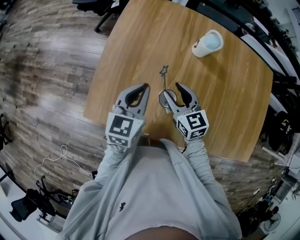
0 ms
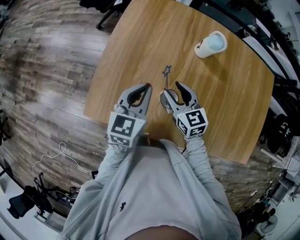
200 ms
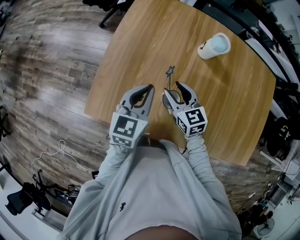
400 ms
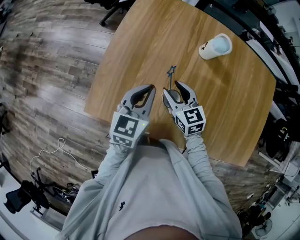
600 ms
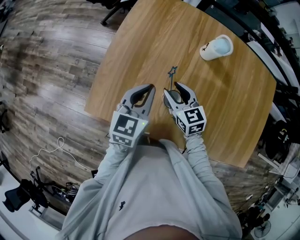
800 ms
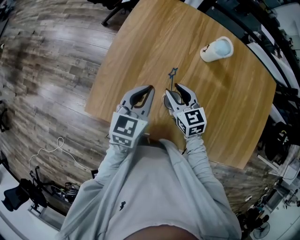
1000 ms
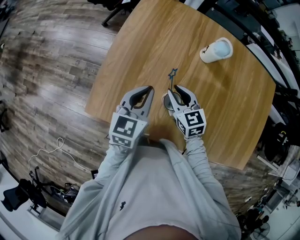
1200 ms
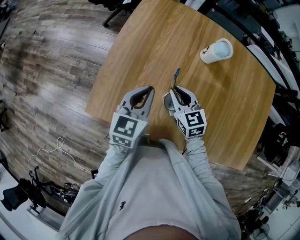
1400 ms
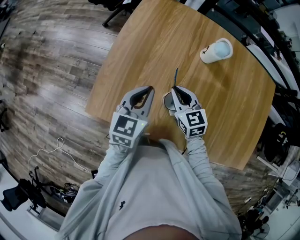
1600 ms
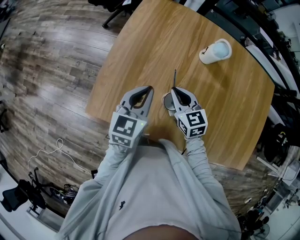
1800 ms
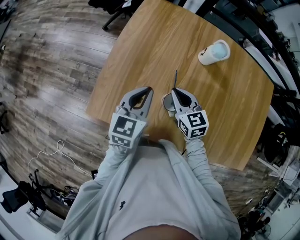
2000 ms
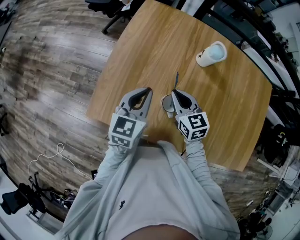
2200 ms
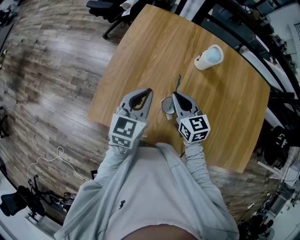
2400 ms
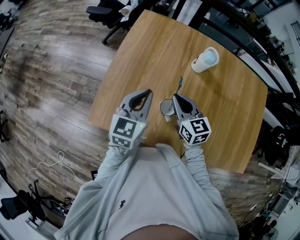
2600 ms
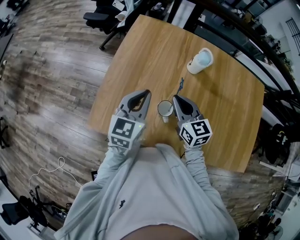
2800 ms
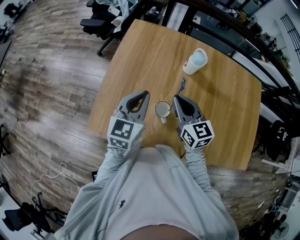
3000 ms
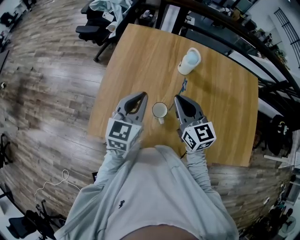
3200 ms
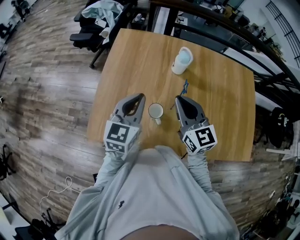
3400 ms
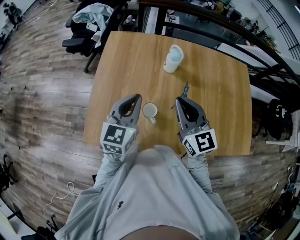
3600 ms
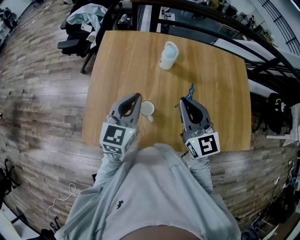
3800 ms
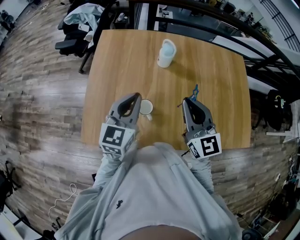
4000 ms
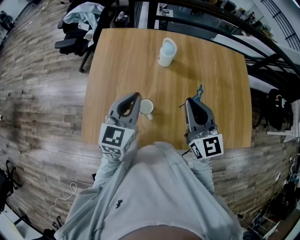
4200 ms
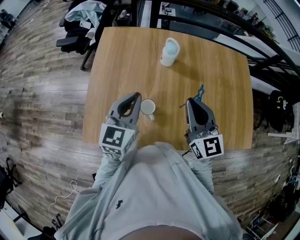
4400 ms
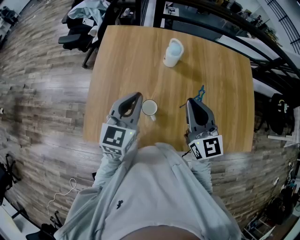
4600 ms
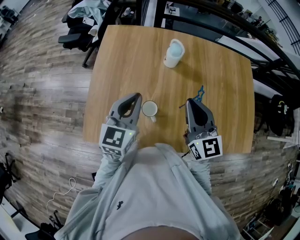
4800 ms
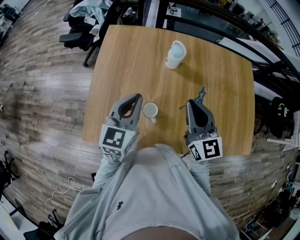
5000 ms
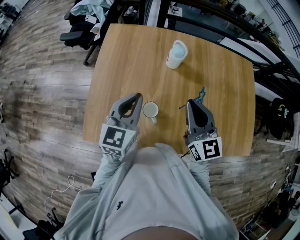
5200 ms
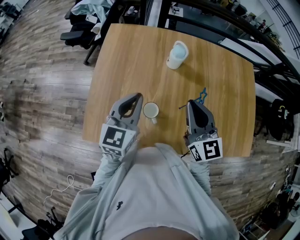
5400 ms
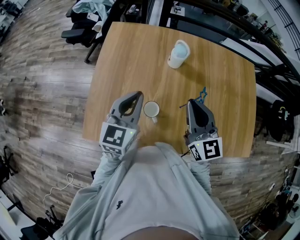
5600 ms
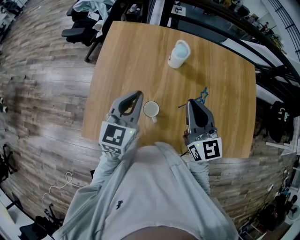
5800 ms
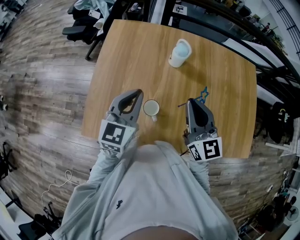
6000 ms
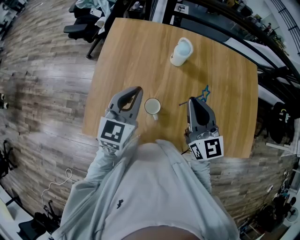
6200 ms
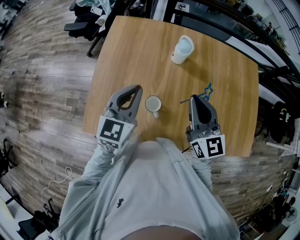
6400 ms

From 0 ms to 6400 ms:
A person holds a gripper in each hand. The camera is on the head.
From 0 ms to 1600 ms: The right gripper closes its fingers.
From 1600 ms to 3200 ms: The left gripper heads upward, covering about 10 cm. The right gripper travels upward by approximately 15 cm, and turns by roughly 20 degrees.
From 3200 ms to 4800 ms: The right gripper goes about 10 cm to the right.
From 4800 ms to 6400 ms: The grippers stay close to where they were, moving slightly.

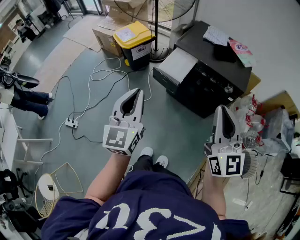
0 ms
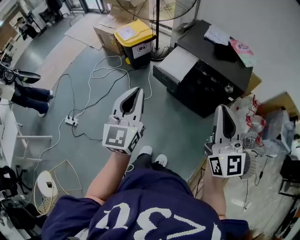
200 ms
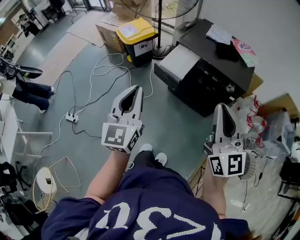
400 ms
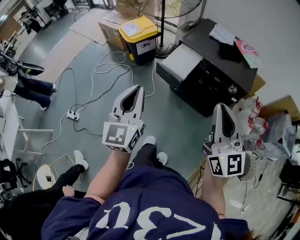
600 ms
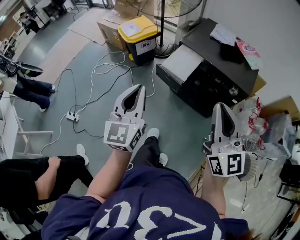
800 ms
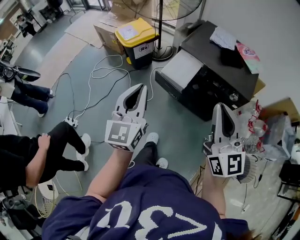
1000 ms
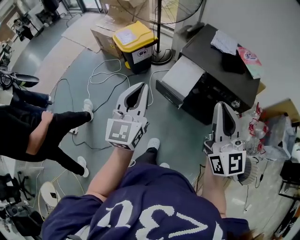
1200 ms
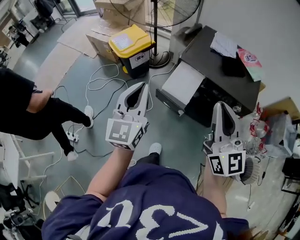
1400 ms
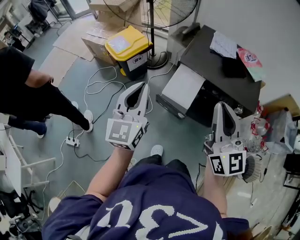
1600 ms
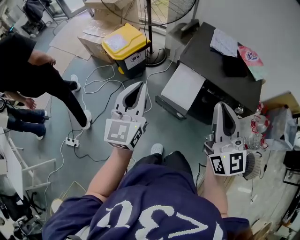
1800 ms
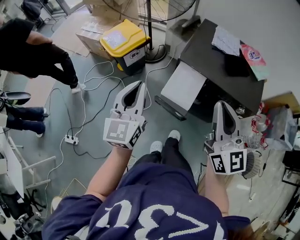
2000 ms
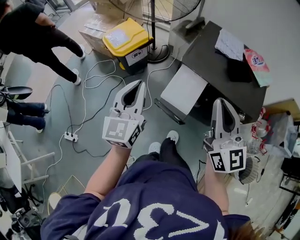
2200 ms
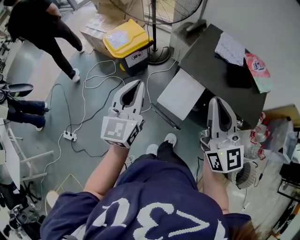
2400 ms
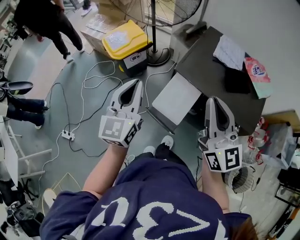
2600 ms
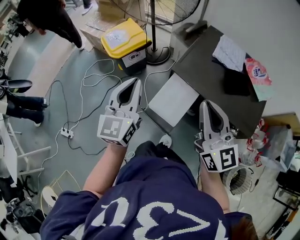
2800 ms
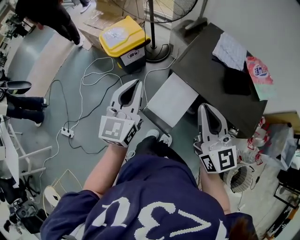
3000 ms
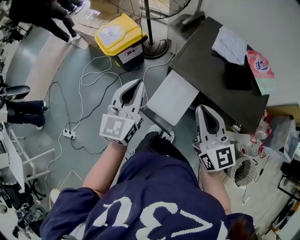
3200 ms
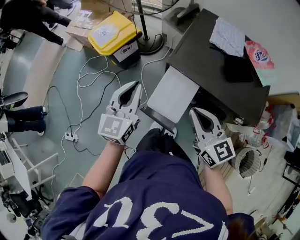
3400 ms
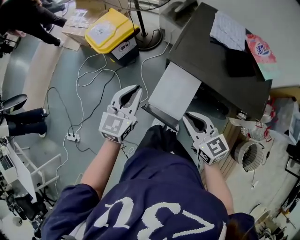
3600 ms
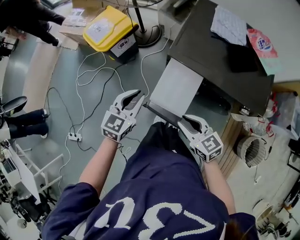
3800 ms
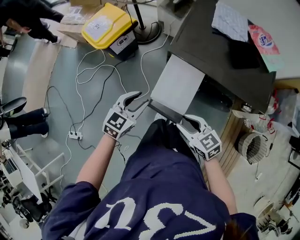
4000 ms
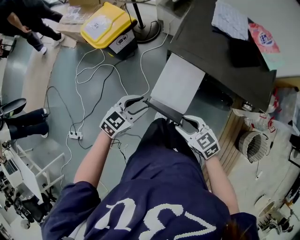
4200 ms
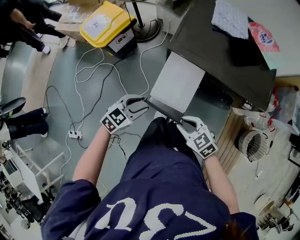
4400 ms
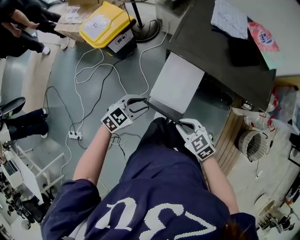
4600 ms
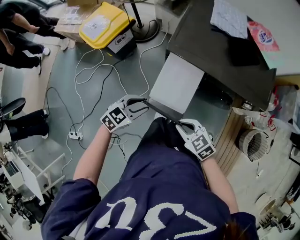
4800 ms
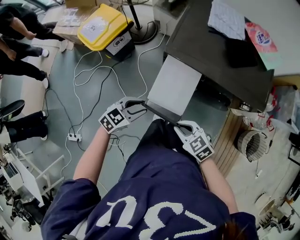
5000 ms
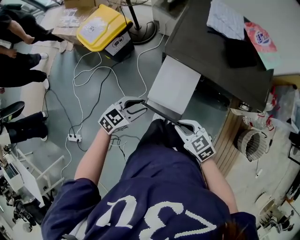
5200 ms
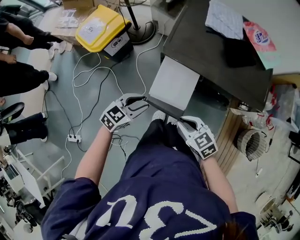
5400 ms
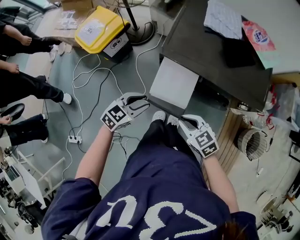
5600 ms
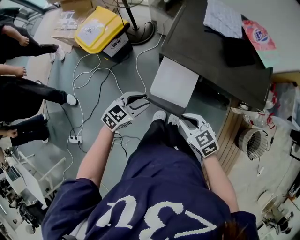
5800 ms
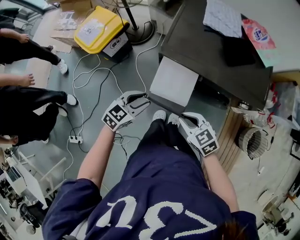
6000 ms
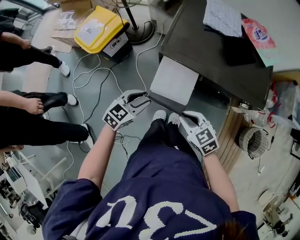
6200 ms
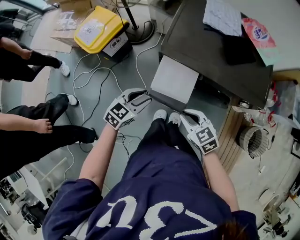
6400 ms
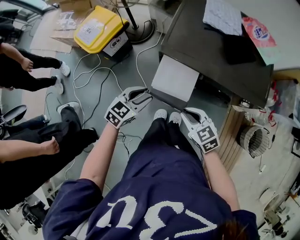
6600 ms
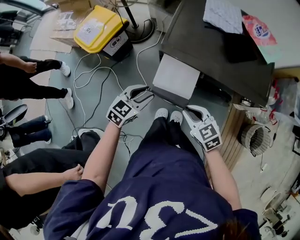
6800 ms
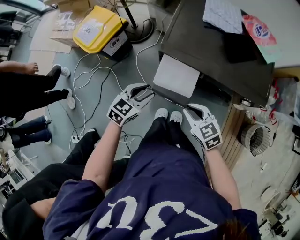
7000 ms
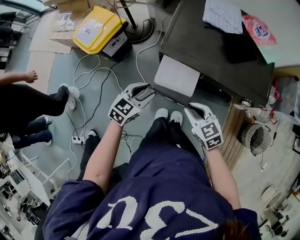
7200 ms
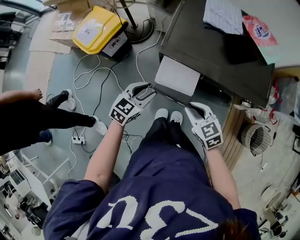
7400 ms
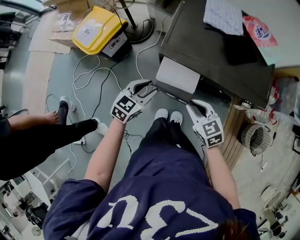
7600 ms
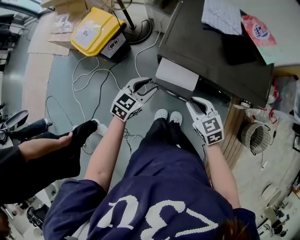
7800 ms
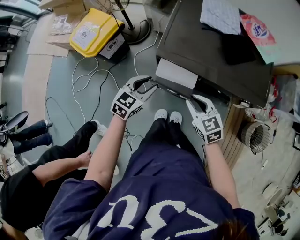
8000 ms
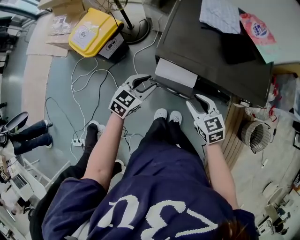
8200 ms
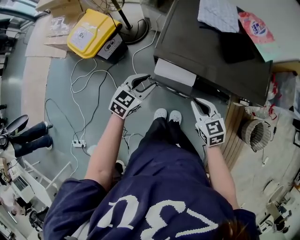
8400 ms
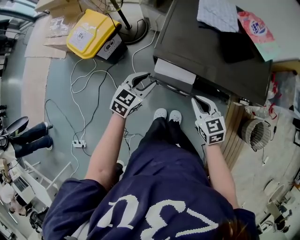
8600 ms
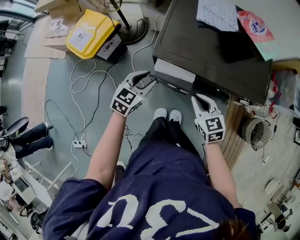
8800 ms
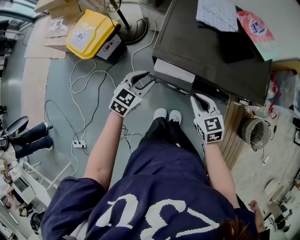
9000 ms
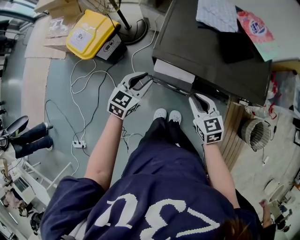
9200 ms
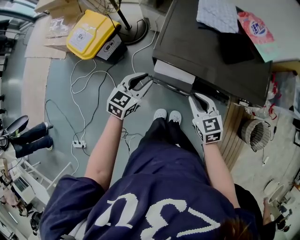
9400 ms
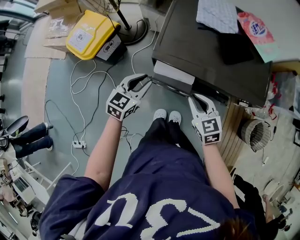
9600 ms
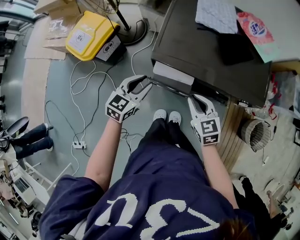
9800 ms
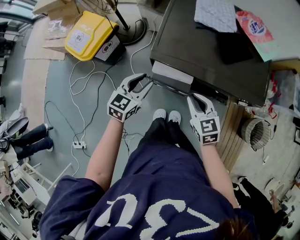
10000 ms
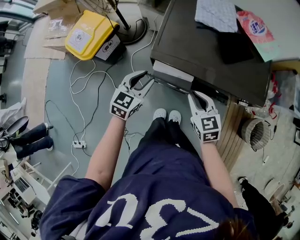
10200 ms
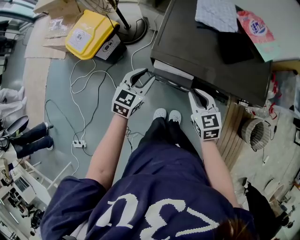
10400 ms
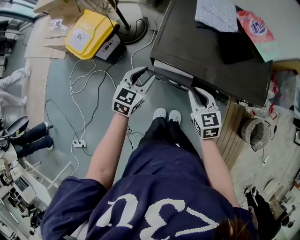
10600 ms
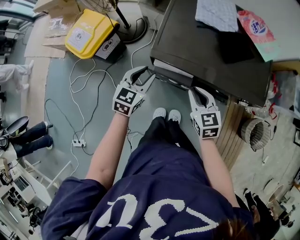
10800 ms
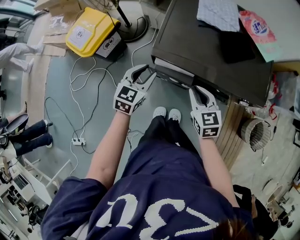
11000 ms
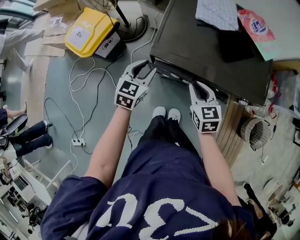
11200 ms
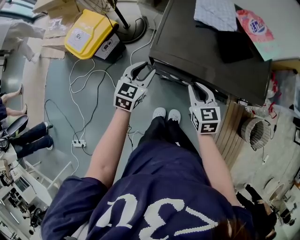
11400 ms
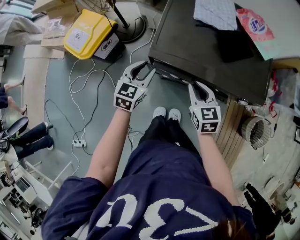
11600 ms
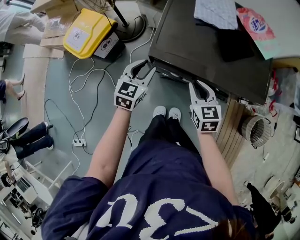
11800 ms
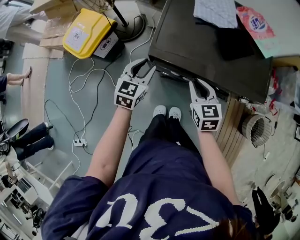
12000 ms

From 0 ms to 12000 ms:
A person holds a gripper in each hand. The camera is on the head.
From 0 ms to 1600 ms: The grippers both shift forward by approximately 25 cm.
From 1600 ms to 3000 ms: The left gripper goes roughly 20 cm forward and to the right. The right gripper shifts approximately 20 cm forward and downward.
From 3000 ms to 4400 ms: Both grippers travel together downward, roughly 25 cm. The left gripper tips its fingers downward by approximately 30 degrees, and opens. Meanwhile the right gripper tilts its fingers some 50 degrees downward, and opens up.
From 4400 ms to 6000 ms: The left gripper changes place by roughly 5 cm. Meanwhile the right gripper ends up approximately 5 cm from where it was.
From 6000 ms to 7600 ms: The grippers both shift forward by some 5 cm.
From 7600 ms to 9000 ms: The right gripper moves some 5 cm, while the left gripper shifts approximately 5 cm forward.
From 9000 ms to 12000 ms: The grippers stay close to where they were, moving slightly.

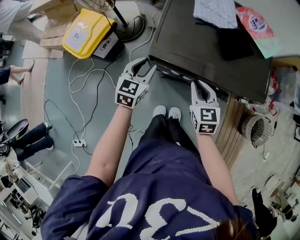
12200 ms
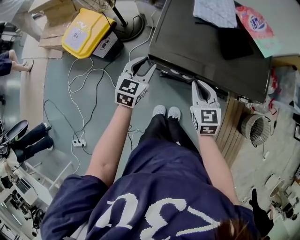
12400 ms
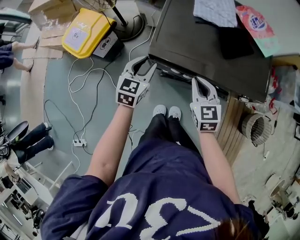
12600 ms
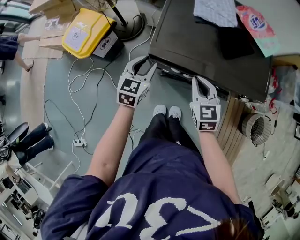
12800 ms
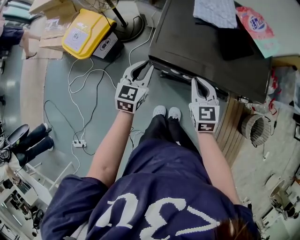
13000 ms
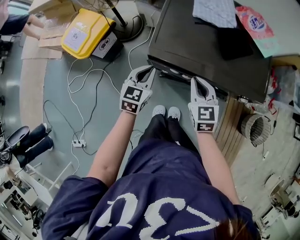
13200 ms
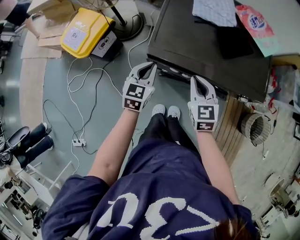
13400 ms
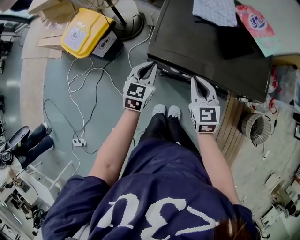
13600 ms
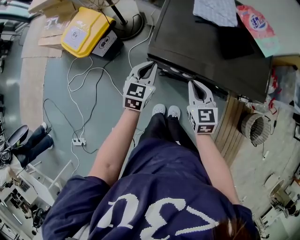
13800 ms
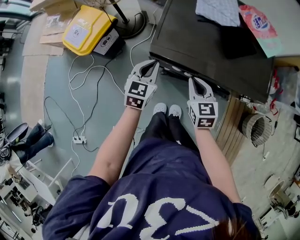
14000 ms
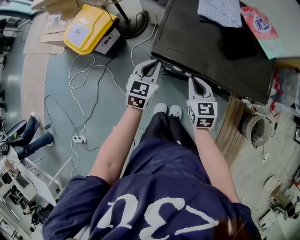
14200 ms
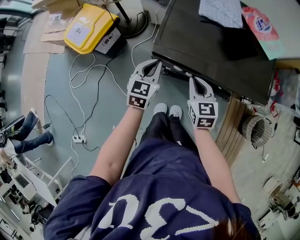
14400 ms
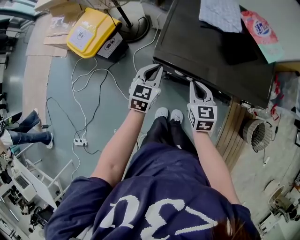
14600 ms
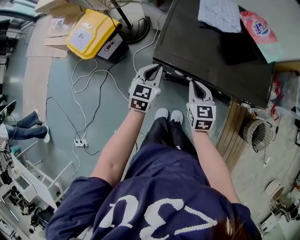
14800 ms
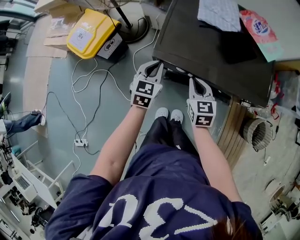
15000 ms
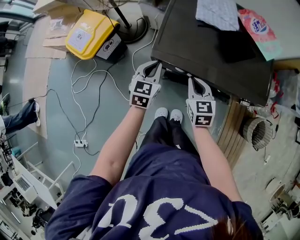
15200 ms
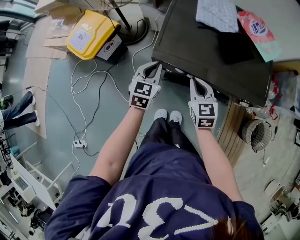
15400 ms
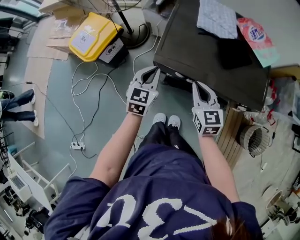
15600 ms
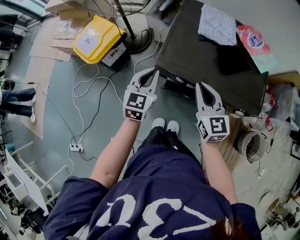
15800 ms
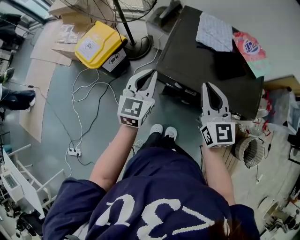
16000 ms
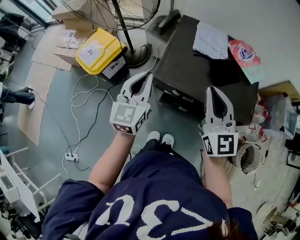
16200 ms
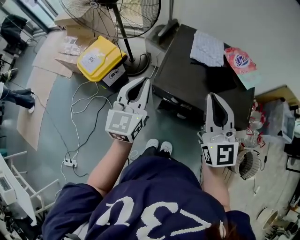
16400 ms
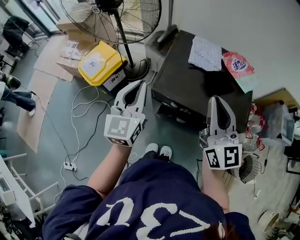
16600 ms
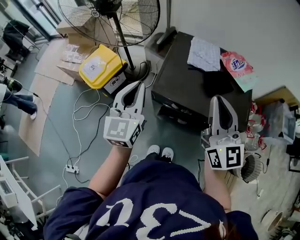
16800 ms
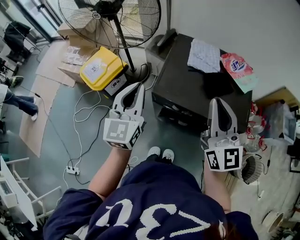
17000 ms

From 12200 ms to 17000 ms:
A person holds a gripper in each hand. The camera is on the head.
From 12200 ms to 13800 ms: The left gripper closes its fingers.
From 13800 ms to 15400 ms: There are only small adjustments of the grippers.
From 15400 ms to 17000 ms: Both grippers move upward, approximately 30 cm. The left gripper changes its angle by some 30 degrees, while the right gripper tips its fingers upward by approximately 40 degrees.

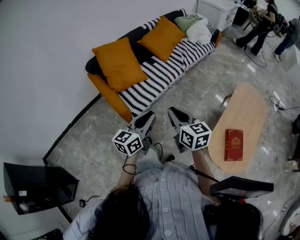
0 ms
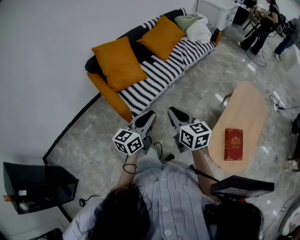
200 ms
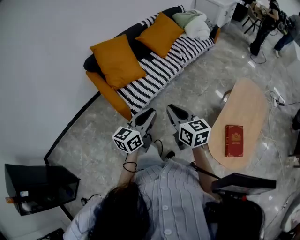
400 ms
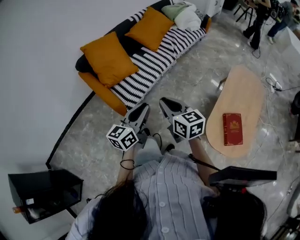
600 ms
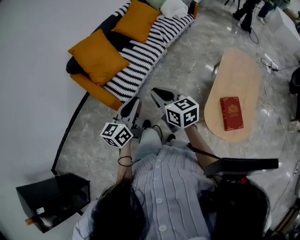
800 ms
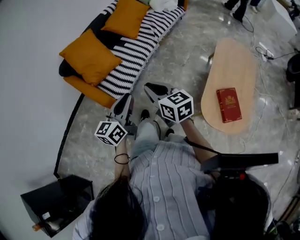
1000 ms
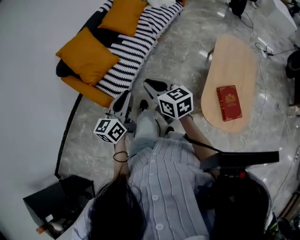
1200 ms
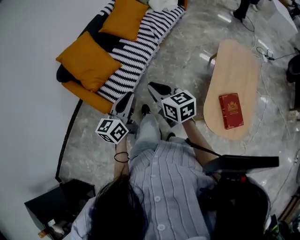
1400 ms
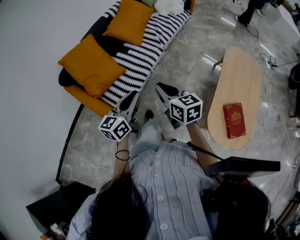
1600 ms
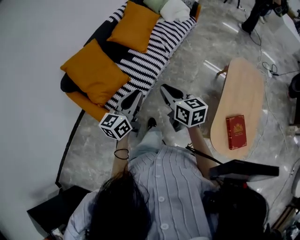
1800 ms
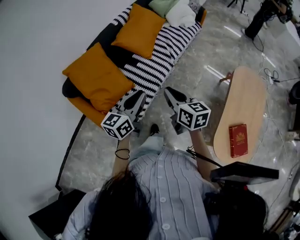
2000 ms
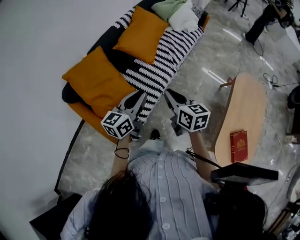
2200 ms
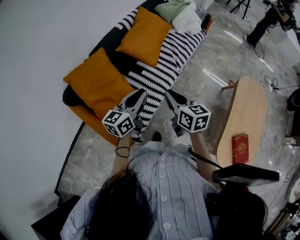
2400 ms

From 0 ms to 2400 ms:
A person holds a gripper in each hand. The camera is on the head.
From 0 ms to 1200 ms: The right gripper shifts by approximately 5 cm.
From 1200 ms to 2400 ms: The two grippers go about 35 cm forward.
